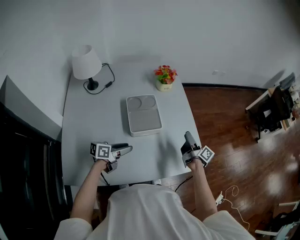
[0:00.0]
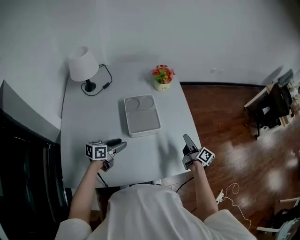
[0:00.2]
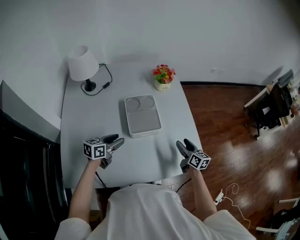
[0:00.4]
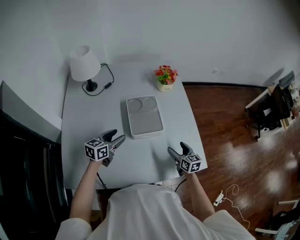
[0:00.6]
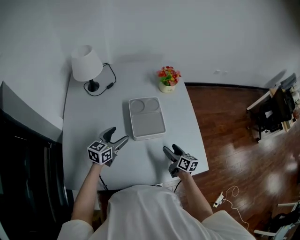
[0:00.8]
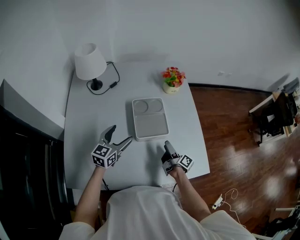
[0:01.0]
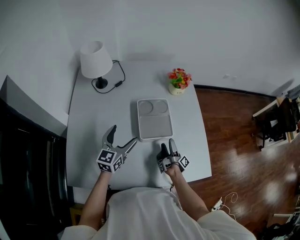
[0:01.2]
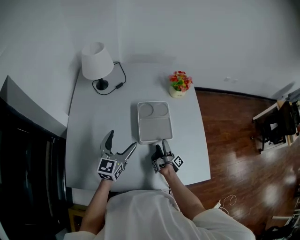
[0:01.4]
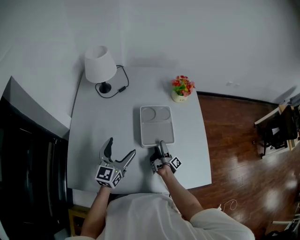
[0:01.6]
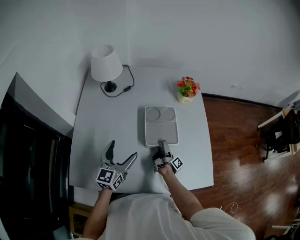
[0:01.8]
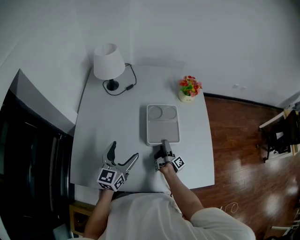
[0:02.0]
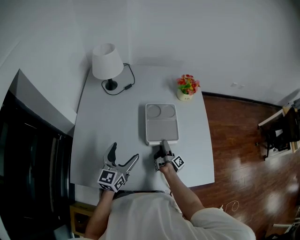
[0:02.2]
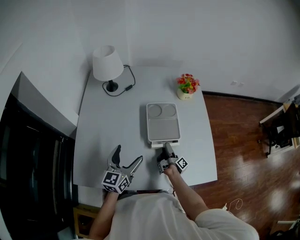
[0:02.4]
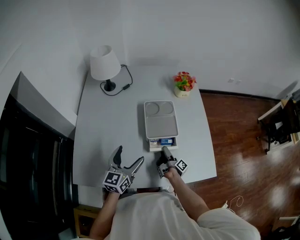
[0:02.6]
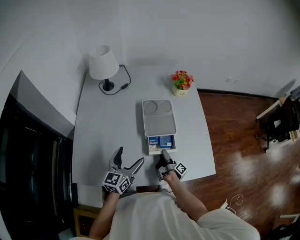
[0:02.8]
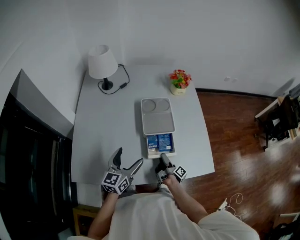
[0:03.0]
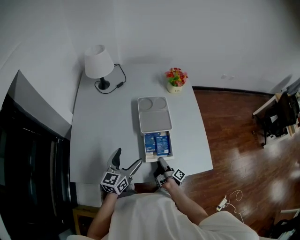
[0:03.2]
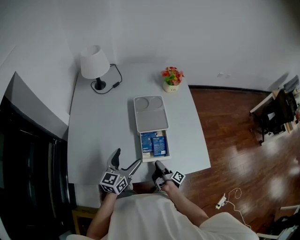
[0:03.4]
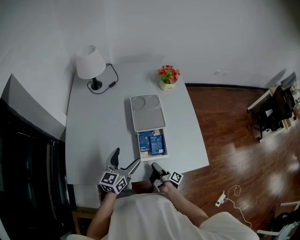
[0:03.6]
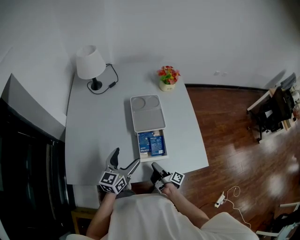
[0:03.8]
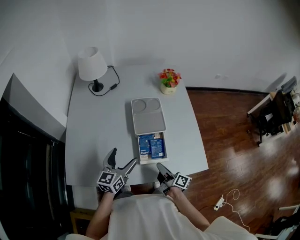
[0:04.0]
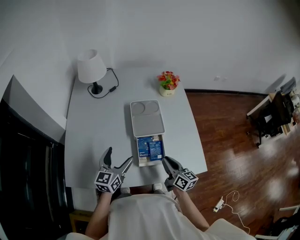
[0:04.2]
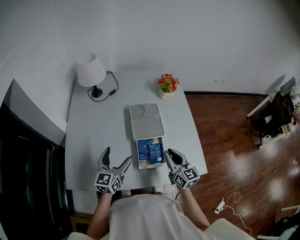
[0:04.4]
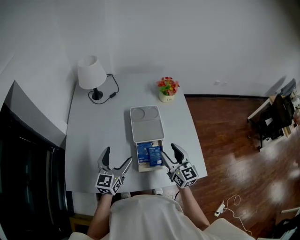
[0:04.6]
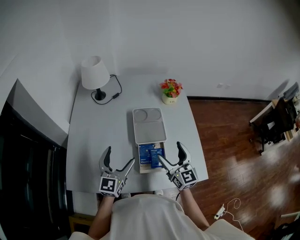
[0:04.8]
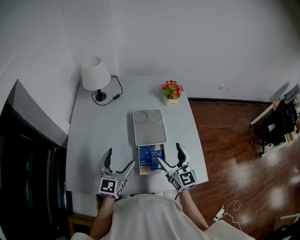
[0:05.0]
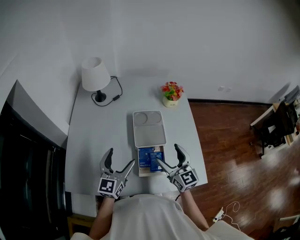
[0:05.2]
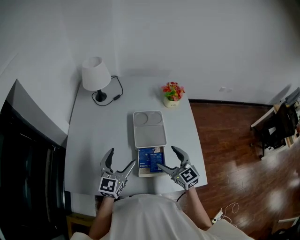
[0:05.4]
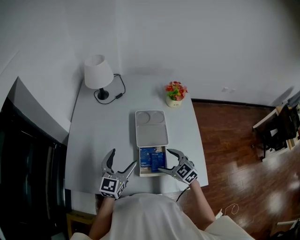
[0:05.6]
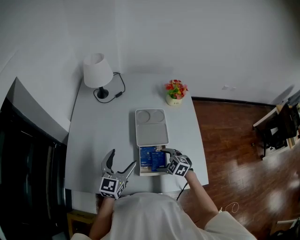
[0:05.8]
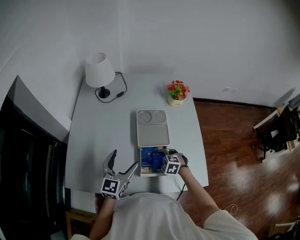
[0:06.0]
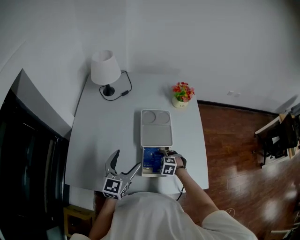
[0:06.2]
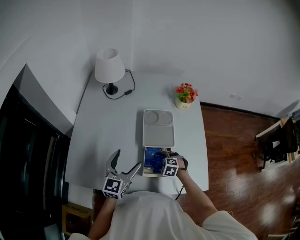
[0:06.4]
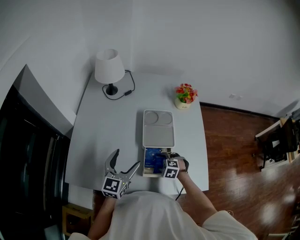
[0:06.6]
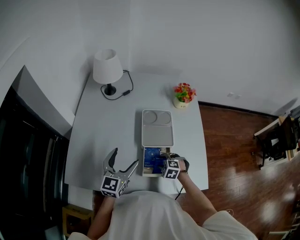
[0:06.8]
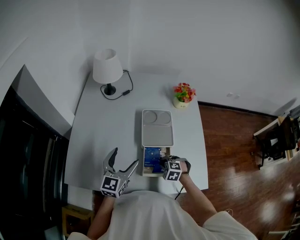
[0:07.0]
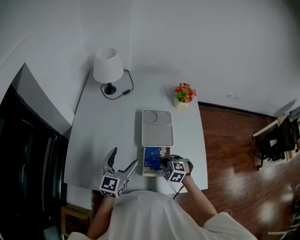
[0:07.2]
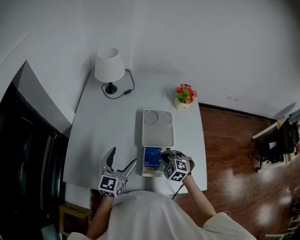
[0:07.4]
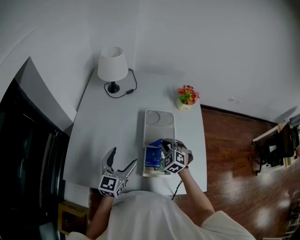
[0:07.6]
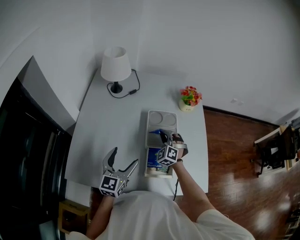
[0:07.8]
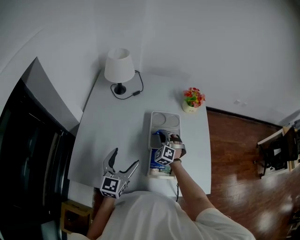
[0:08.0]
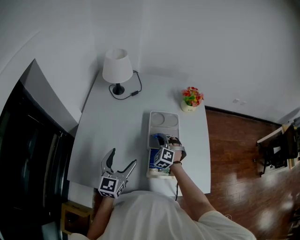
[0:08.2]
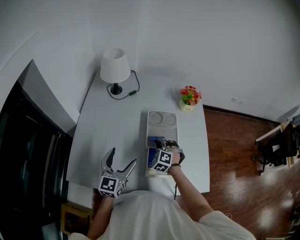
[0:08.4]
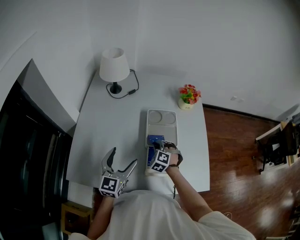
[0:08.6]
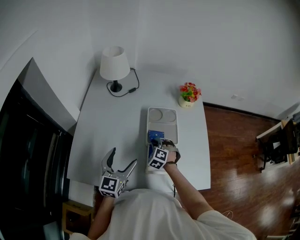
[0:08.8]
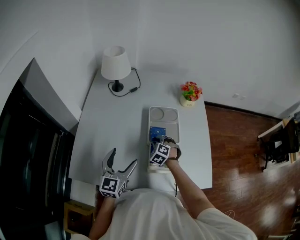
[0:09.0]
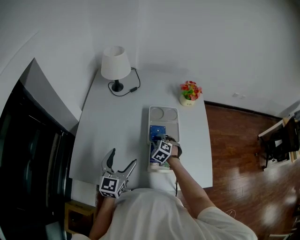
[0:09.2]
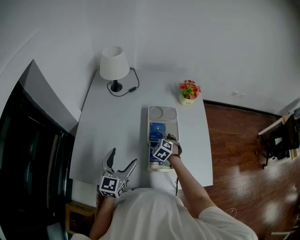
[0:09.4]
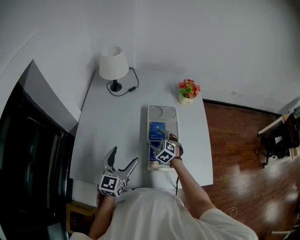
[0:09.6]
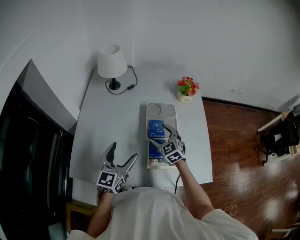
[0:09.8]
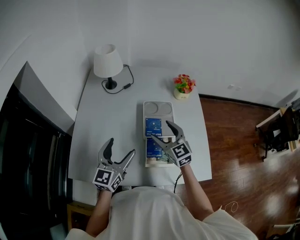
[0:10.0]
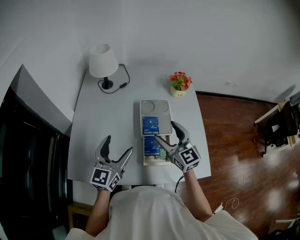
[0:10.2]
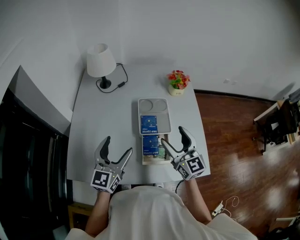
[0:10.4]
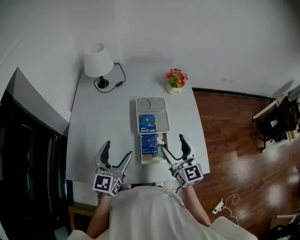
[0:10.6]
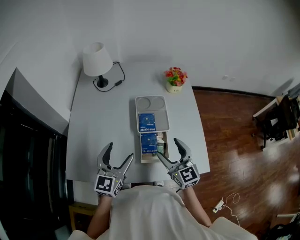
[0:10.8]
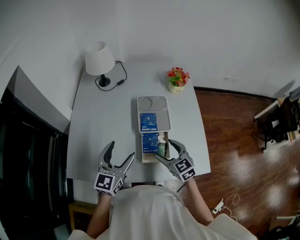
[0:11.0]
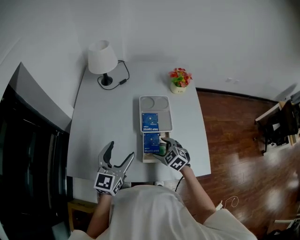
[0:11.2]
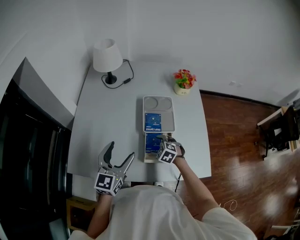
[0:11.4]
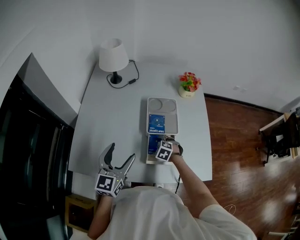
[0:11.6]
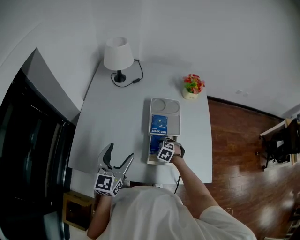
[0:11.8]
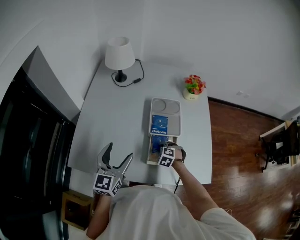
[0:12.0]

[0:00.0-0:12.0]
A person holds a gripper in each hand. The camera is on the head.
0:00.0 to 0:01.6: The left gripper travels upward and to the left by some 15 cm, swivels about 60 degrees, and opens up, while the right gripper shifts roughly 25 cm to the left and downward, and changes its angle by approximately 30 degrees.
0:01.6 to 0:03.0: The two grippers go roughly 10 cm backward. The right gripper closes its fingers.
0:03.0 to 0:04.4: The right gripper moves upward, roughly 20 cm, and rolls counterclockwise, seen from behind, by roughly 90 degrees.
0:04.4 to 0:06.0: The right gripper goes approximately 20 cm downward, points its fingers roughly 60 degrees further downward, and opens up.
0:06.0 to 0:07.6: The right gripper is displaced upward and forward by roughly 15 cm, swivels some 30 degrees, and closes up.
0:07.6 to 0:09.0: The right gripper is displaced downward by approximately 10 cm.
0:09.0 to 0:10.4: The right gripper travels upward by approximately 25 cm, tips its fingers upward by roughly 50 degrees, and opens up, while the left gripper heads upward, covering approximately 5 cm.
0:10.4 to 0:12.0: The right gripper is displaced downward by some 30 cm, tips its fingers downward by approximately 60 degrees, and closes up. The left gripper moves approximately 5 cm.

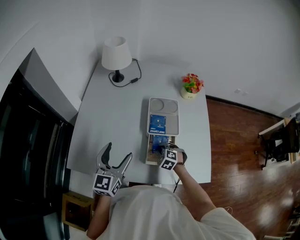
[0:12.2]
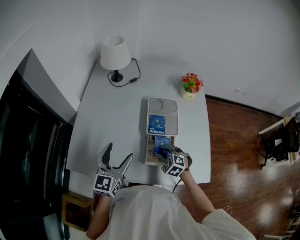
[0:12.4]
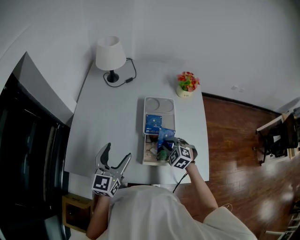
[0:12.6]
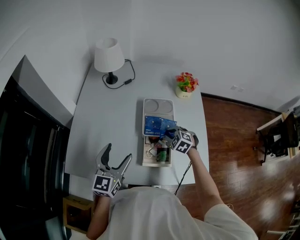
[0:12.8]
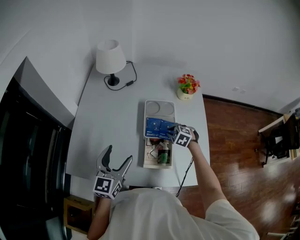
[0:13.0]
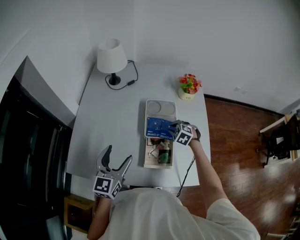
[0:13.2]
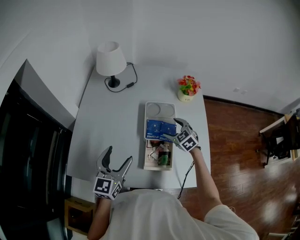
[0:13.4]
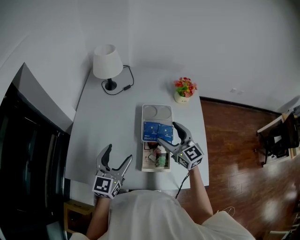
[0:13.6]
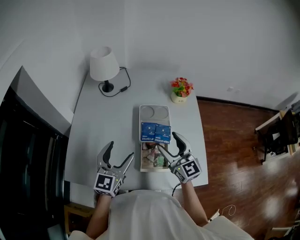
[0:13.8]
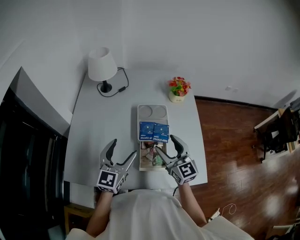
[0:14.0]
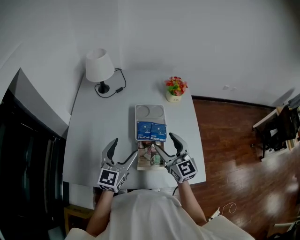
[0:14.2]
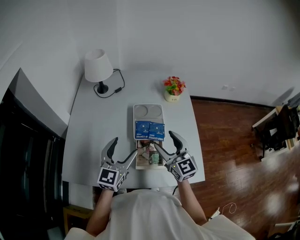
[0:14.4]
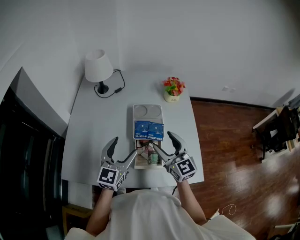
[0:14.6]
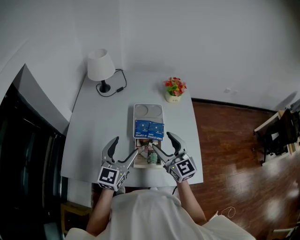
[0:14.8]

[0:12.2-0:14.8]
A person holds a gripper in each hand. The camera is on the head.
0:12.2 to 0:13.4: The right gripper is displaced upward, forward and to the right by roughly 20 cm, swivels approximately 30 degrees, and opens its fingers.
0:13.4 to 0:14.8: The left gripper is displaced to the right by roughly 10 cm; the right gripper travels upward and backward by approximately 20 cm, and tilts its fingers about 40 degrees upward.

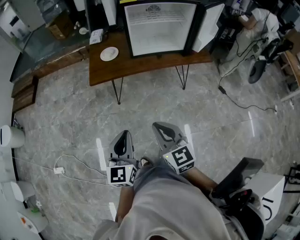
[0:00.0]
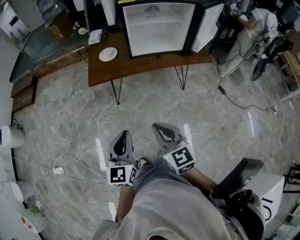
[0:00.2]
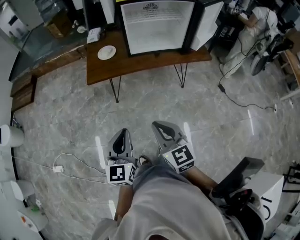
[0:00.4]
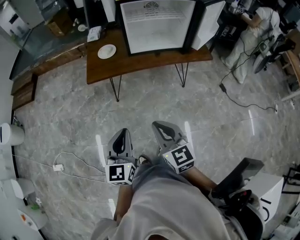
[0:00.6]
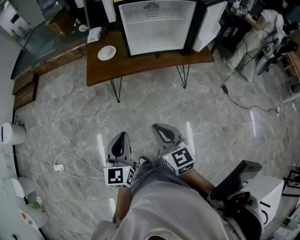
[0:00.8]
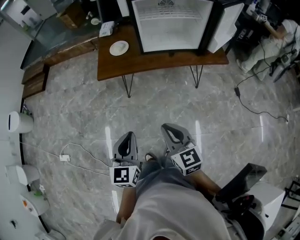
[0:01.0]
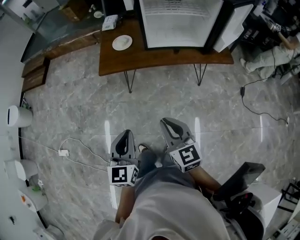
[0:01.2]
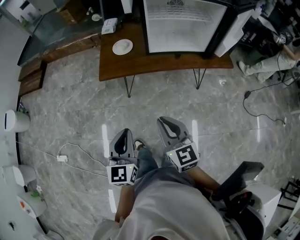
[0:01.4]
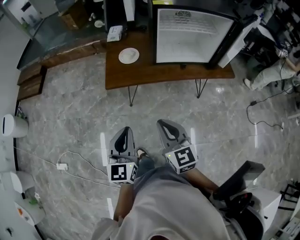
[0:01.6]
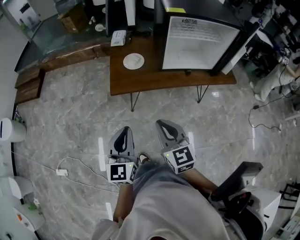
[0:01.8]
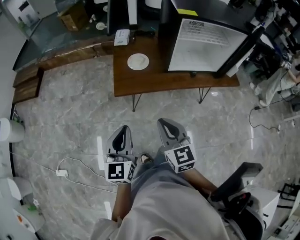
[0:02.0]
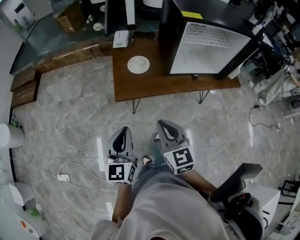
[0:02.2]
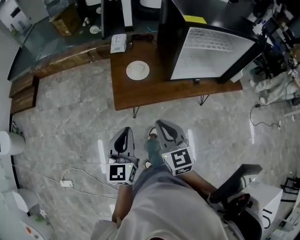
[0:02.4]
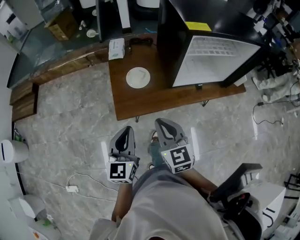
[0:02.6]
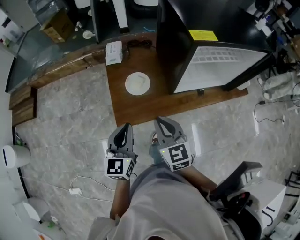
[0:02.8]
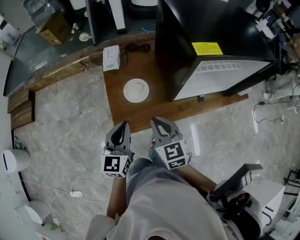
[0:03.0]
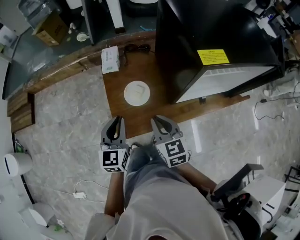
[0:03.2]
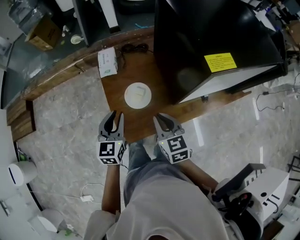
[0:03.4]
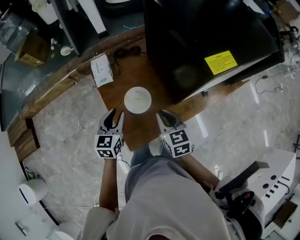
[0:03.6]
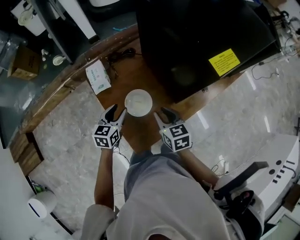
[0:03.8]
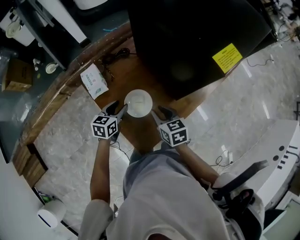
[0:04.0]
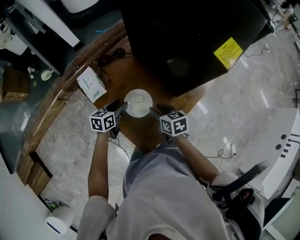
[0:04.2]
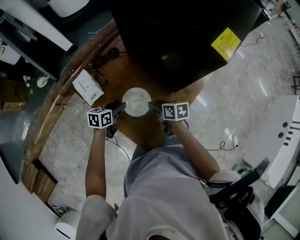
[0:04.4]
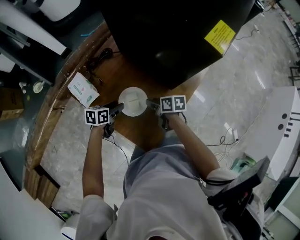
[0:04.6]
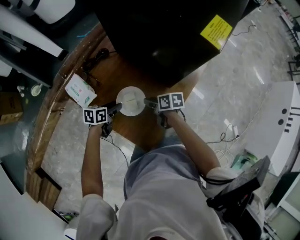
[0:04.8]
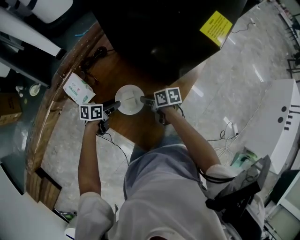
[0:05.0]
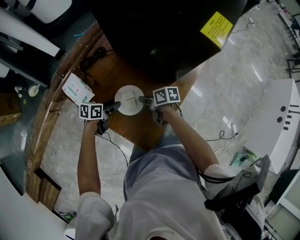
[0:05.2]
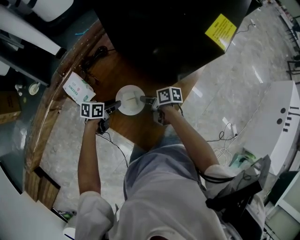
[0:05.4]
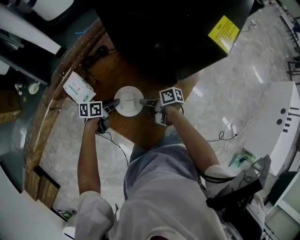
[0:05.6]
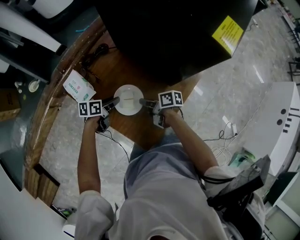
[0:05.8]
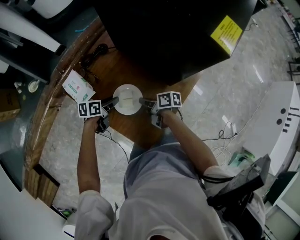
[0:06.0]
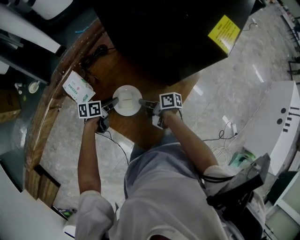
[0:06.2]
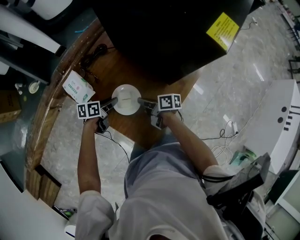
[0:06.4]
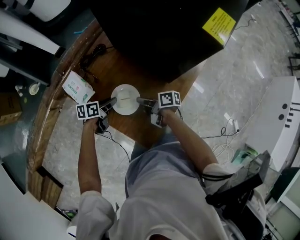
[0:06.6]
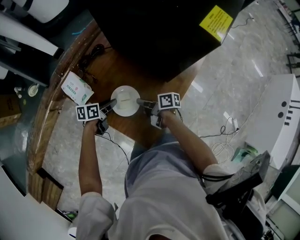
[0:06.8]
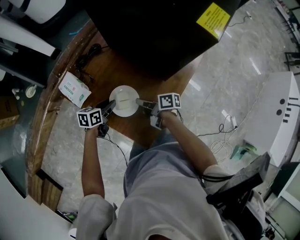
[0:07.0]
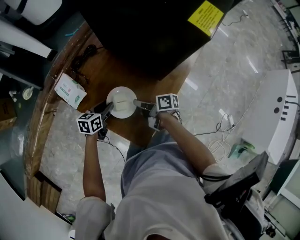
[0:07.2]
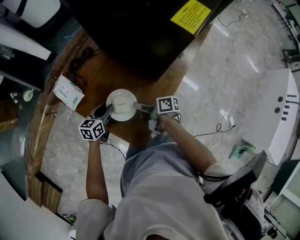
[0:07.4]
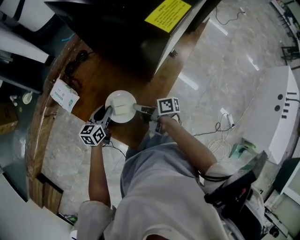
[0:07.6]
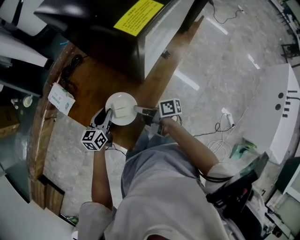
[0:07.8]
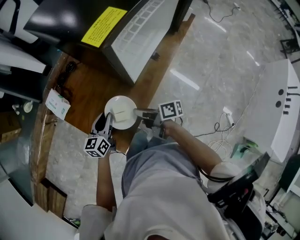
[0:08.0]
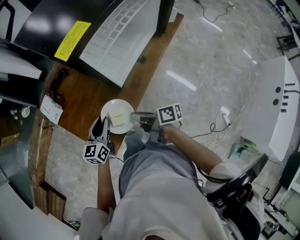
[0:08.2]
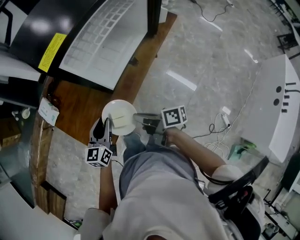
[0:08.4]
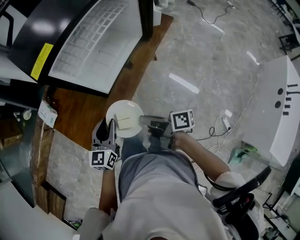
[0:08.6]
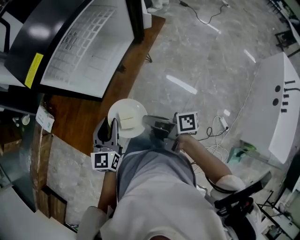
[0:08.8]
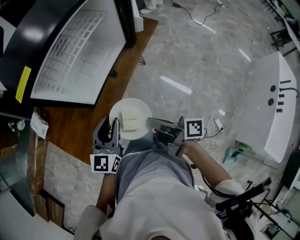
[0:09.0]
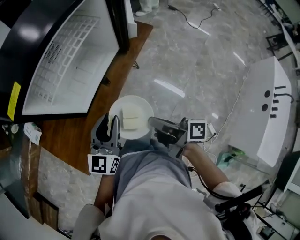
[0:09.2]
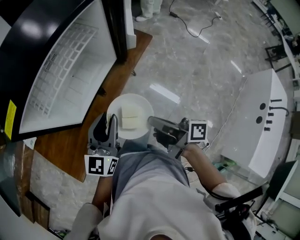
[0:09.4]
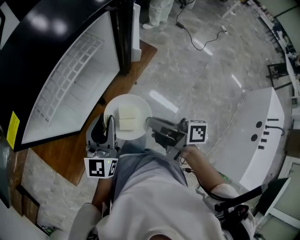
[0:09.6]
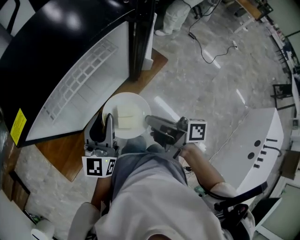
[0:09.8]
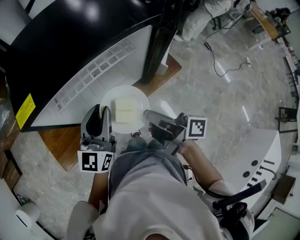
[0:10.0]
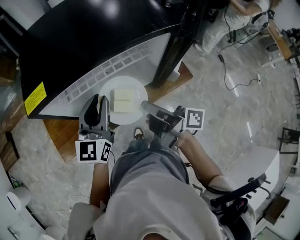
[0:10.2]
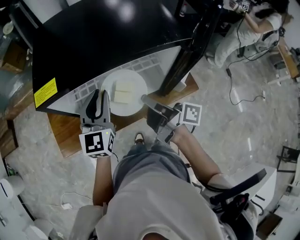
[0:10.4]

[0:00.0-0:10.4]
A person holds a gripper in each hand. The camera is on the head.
0:00.0 to 0:01.4: Both grippers travel together forward, roughly 20 cm.
0:01.4 to 0:03.0: Both grippers are carried forward, about 70 cm.
0:03.0 to 0:04.4: The right gripper ends up some 40 cm from where it was, twists about 60 degrees clockwise, seen from behind, and opens up. Meanwhile the left gripper ends up about 50 cm from where it was, turns by some 60 degrees, and opens its fingers.
0:04.4 to 0:06.0: The left gripper shifts by about 5 cm; the right gripper heads downward, covering approximately 5 cm, rotates some 30 degrees, and closes its fingers.
0:06.0 to 0:07.4: The grippers both shift to the right by some 5 cm. The left gripper changes its angle by roughly 30 degrees.
0:07.4 to 0:09.0: Both grippers are carried to the right, approximately 60 cm. The left gripper swivels some 30 degrees.
0:09.0 to 0:10.4: The left gripper moves some 40 cm, and rotates about 50 degrees; the right gripper changes place by approximately 50 cm, and rotates some 30 degrees.
